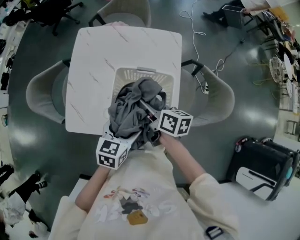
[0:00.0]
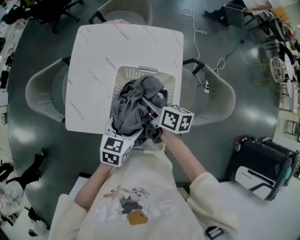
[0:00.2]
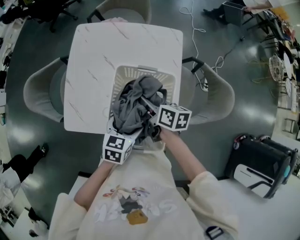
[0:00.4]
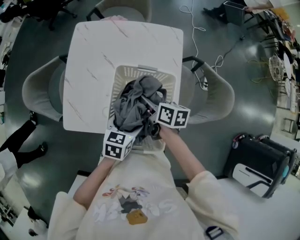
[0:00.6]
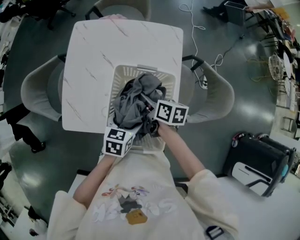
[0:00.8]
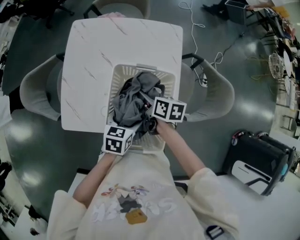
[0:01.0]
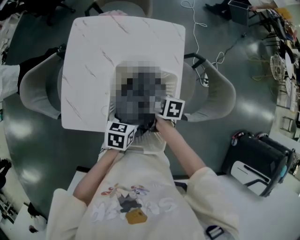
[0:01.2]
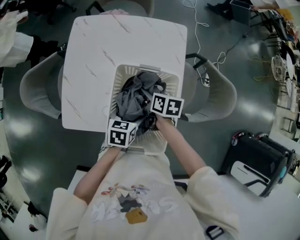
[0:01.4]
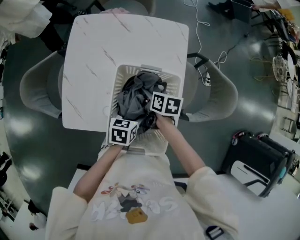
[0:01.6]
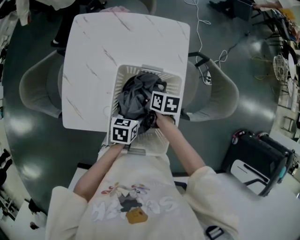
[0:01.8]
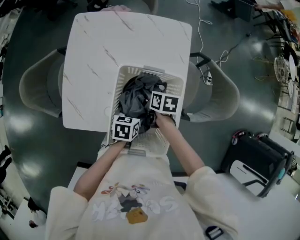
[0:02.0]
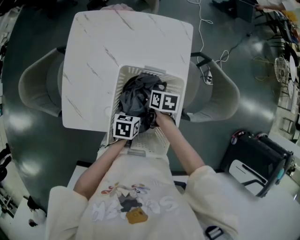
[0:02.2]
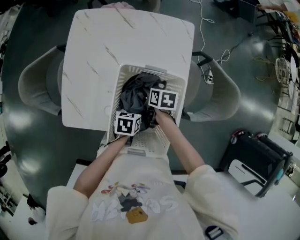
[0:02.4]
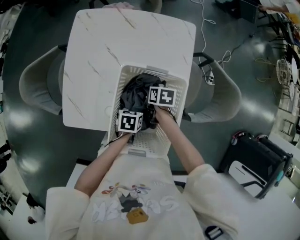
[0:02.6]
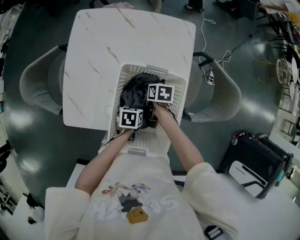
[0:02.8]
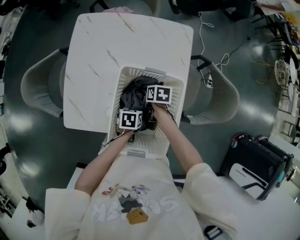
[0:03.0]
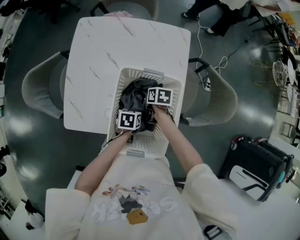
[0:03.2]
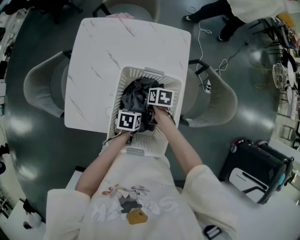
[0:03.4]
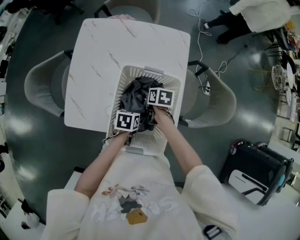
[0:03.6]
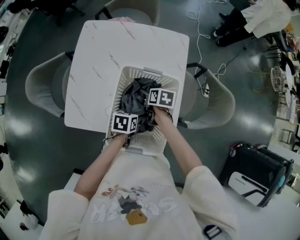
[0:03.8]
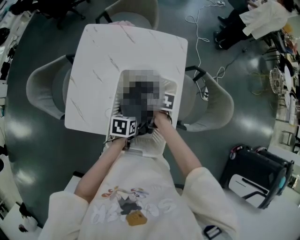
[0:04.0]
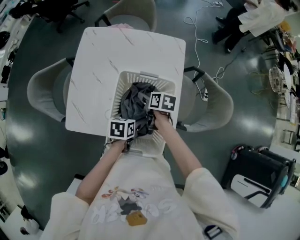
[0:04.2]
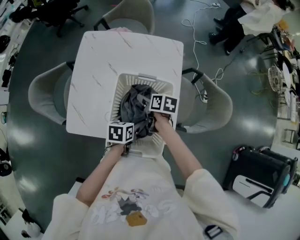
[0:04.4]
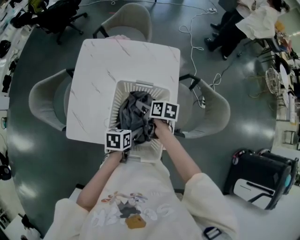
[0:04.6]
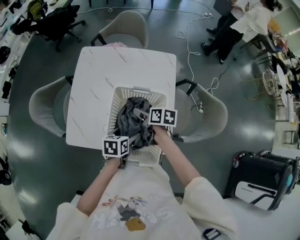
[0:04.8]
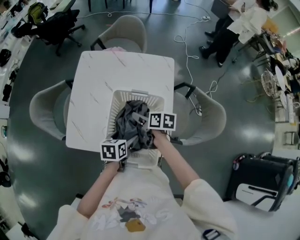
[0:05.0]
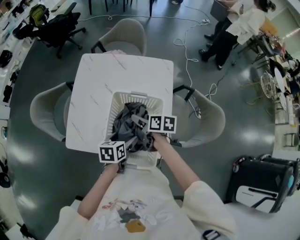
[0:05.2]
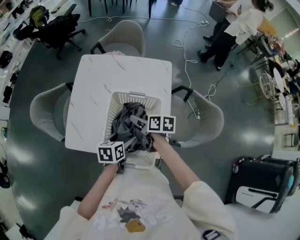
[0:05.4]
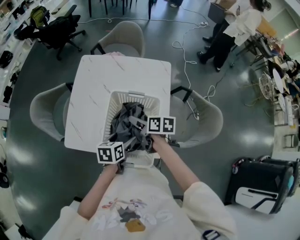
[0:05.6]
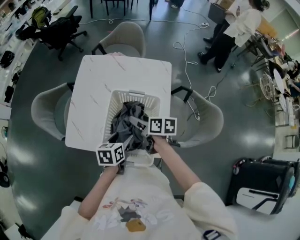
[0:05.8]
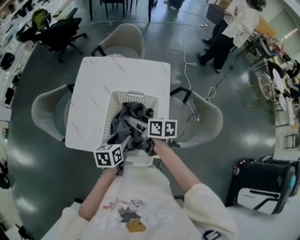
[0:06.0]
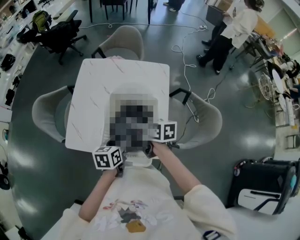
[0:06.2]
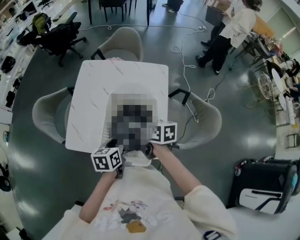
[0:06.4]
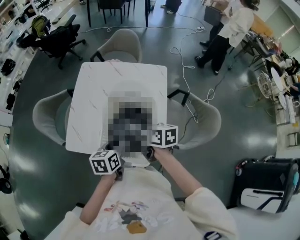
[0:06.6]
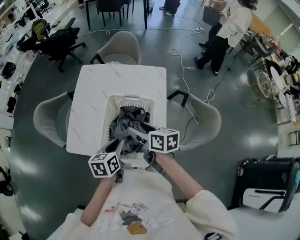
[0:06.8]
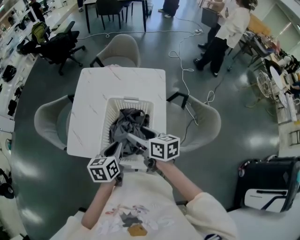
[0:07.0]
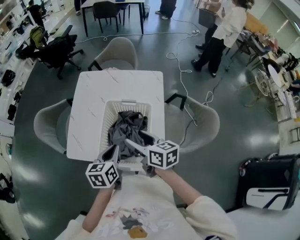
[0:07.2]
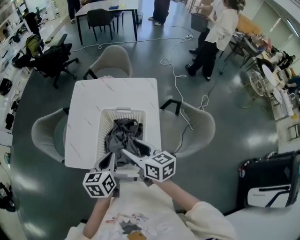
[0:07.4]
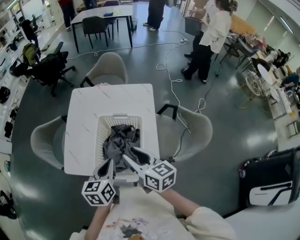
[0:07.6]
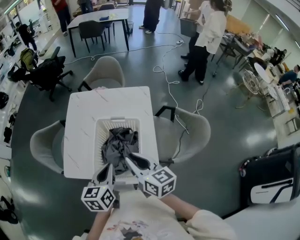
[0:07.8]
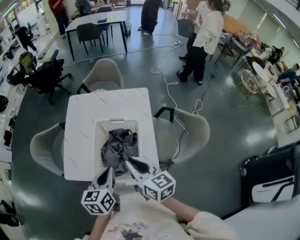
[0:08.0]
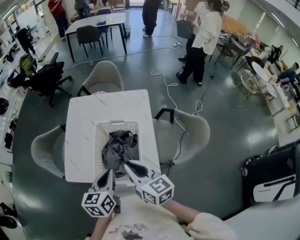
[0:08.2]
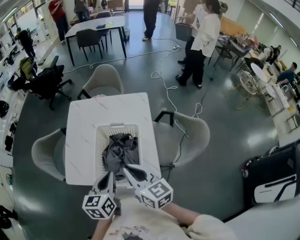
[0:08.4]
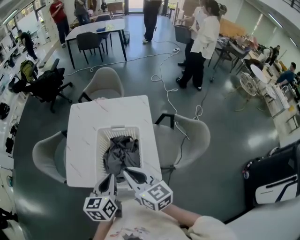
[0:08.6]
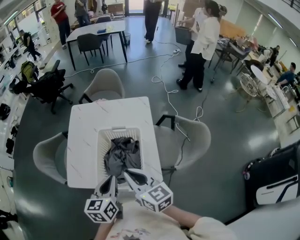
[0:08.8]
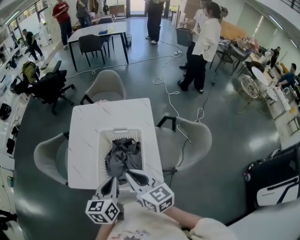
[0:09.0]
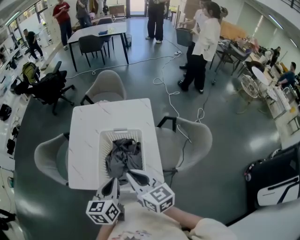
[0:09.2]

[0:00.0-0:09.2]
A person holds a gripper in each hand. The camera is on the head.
0:00.0 to 0:01.6: The left gripper heads downward, covering about 10 cm, while the right gripper goes some 15 cm downward and forward, and swivels about 20 degrees.
0:01.6 to 0:03.0: The two grippers go roughly 10 cm downward.
0:03.0 to 0:04.6: Both grippers travel together upward, about 15 cm.
0:04.6 to 0:06.2: The right gripper goes approximately 15 cm upward and backward. Meanwhile the left gripper travels upward by roughly 10 cm, and closes.
0:06.2 to 0:07.6: The right gripper heads upward and backward, covering some 15 cm, turns by roughly 20 degrees, and closes. Meanwhile the left gripper heads upward, covering roughly 10 cm, and closes.
0:07.6 to 0:09.2: The right gripper closes up.

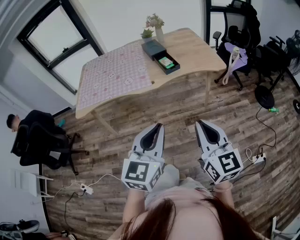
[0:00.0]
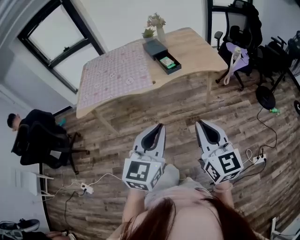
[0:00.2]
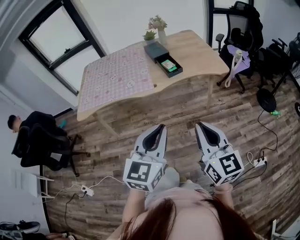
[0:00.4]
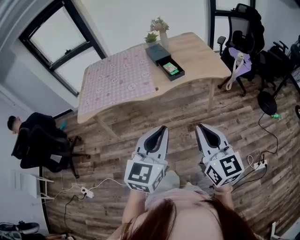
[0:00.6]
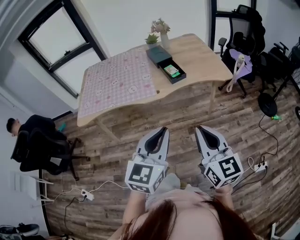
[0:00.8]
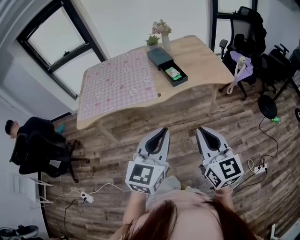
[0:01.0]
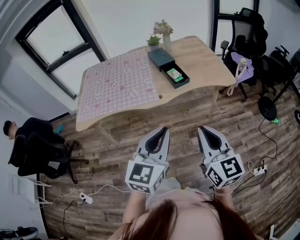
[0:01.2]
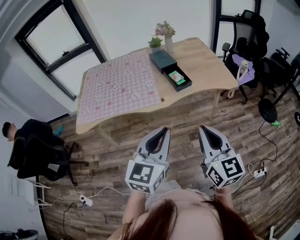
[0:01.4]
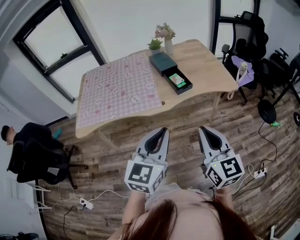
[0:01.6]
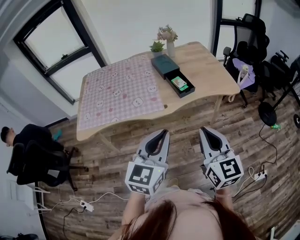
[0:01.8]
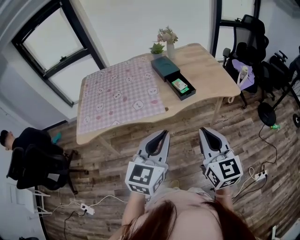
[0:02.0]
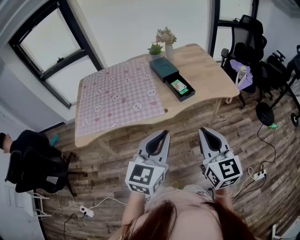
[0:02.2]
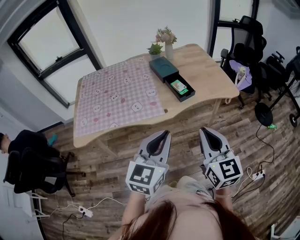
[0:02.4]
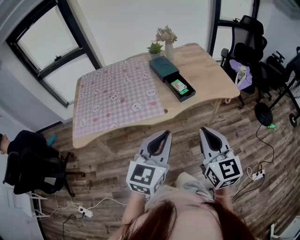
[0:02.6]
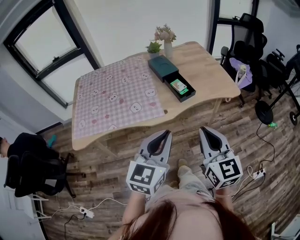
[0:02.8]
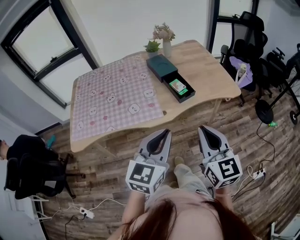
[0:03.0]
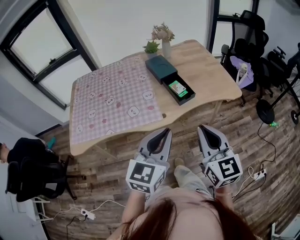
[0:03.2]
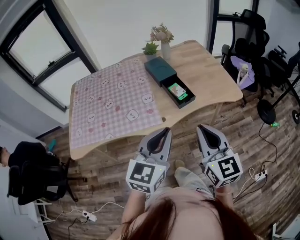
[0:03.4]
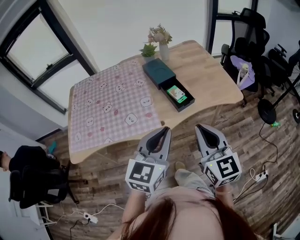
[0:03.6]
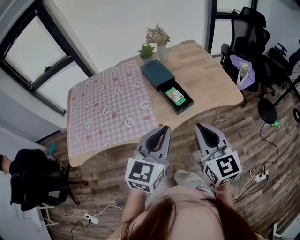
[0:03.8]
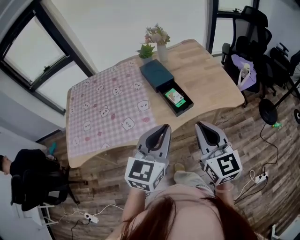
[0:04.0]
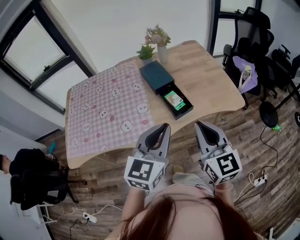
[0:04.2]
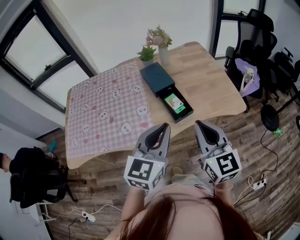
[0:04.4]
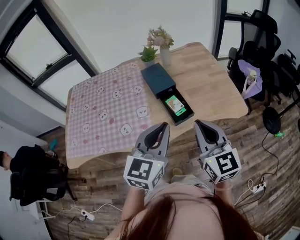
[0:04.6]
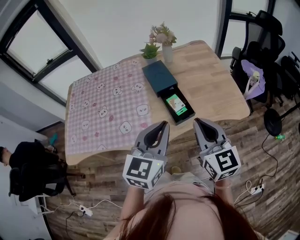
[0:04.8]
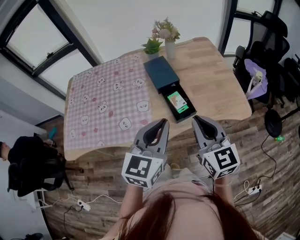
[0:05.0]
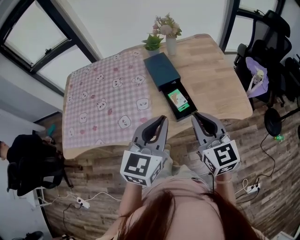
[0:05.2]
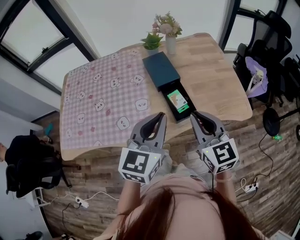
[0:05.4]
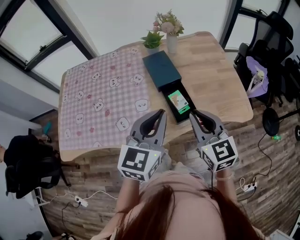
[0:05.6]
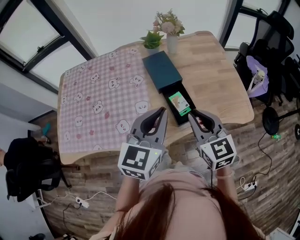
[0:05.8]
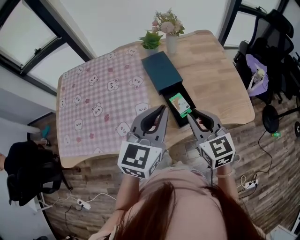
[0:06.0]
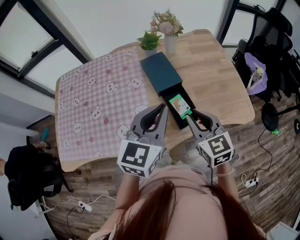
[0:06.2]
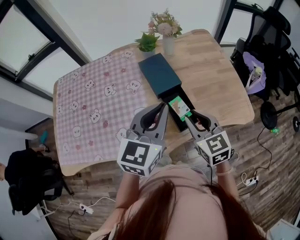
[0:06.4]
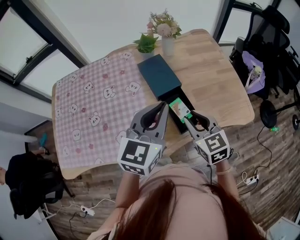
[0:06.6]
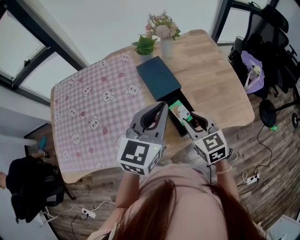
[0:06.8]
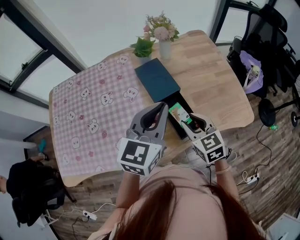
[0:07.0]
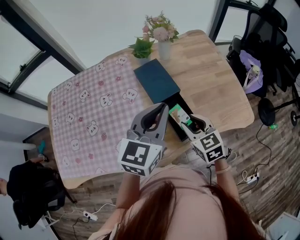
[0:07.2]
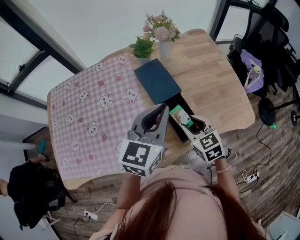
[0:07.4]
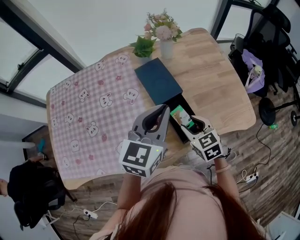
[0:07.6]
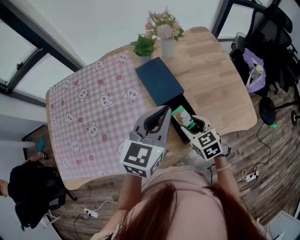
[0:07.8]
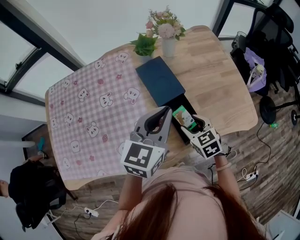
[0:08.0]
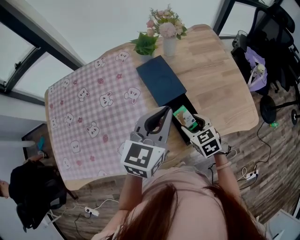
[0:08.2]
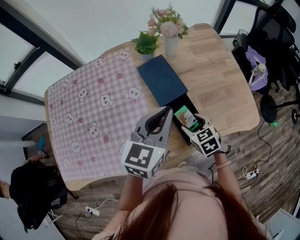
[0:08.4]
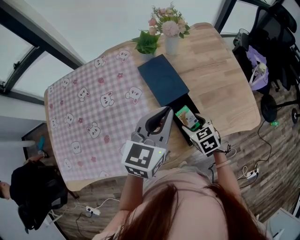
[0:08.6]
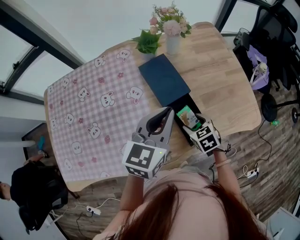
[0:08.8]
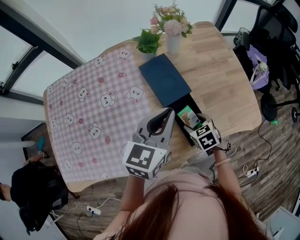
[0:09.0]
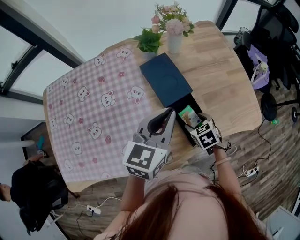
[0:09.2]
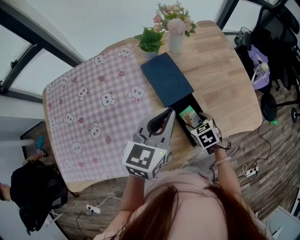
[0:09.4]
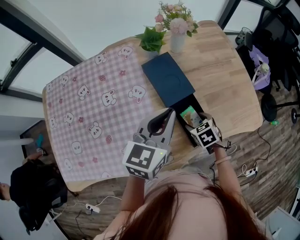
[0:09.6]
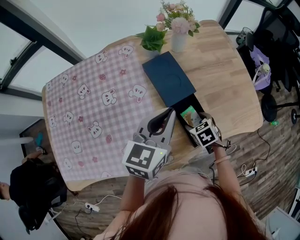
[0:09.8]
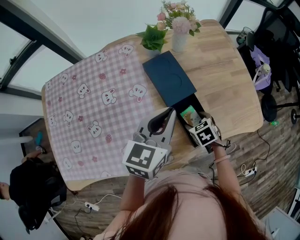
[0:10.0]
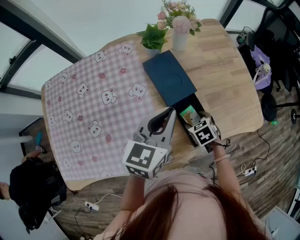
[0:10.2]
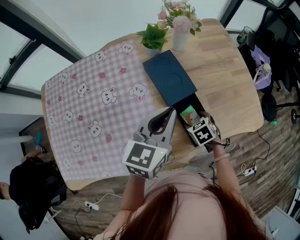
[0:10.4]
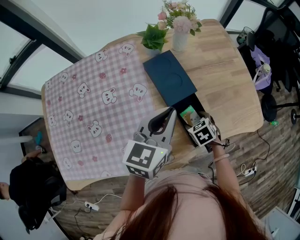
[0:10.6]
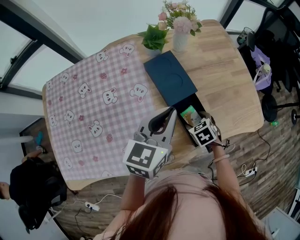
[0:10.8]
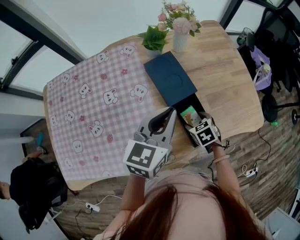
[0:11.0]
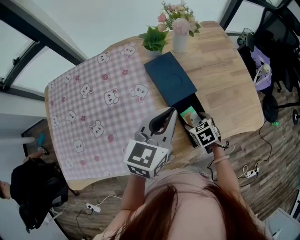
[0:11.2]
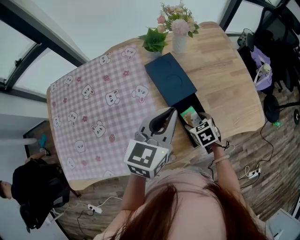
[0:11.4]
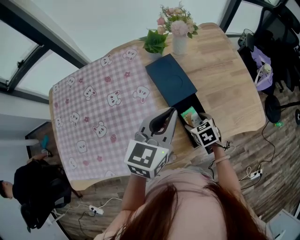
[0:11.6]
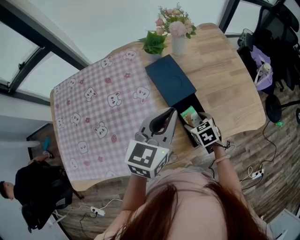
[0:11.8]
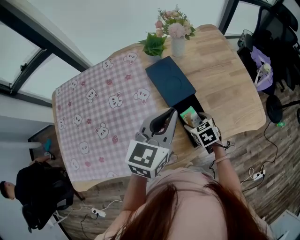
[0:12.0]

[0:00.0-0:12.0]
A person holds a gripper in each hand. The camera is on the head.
0:00.0 to 0:01.6: The grippers both shift forward and to the left by roughly 20 cm.
0:01.6 to 0:03.0: The two grippers go roughly 10 cm forward.
0:03.0 to 0:04.4: The two grippers go roughly 20 cm forward.
0:04.4 to 0:06.0: The left gripper goes approximately 15 cm forward, while the right gripper goes approximately 20 cm forward and downward.
0:06.0 to 0:07.6: The right gripper is displaced downward and forward by some 15 cm, rotates about 20 degrees, and opens its fingers, while the left gripper goes roughly 10 cm forward.
0:07.6 to 0:09.0: The left gripper shifts by about 5 cm. The right gripper goes about 10 cm downward.
0:09.0 to 0:12.0: The grippers move only a little.

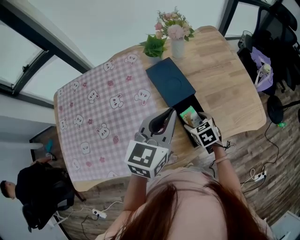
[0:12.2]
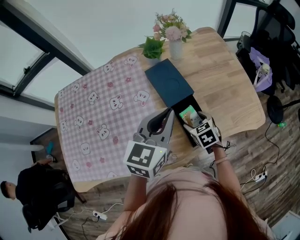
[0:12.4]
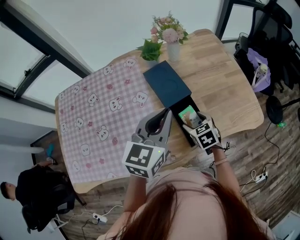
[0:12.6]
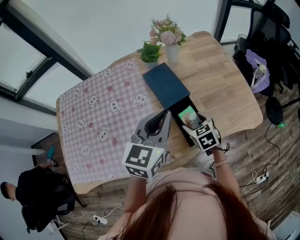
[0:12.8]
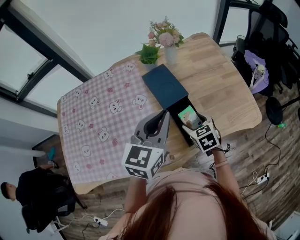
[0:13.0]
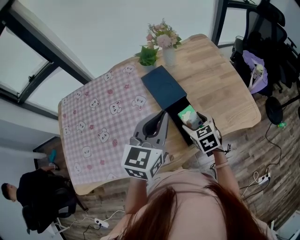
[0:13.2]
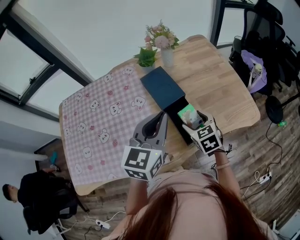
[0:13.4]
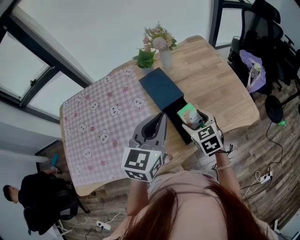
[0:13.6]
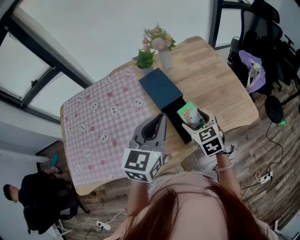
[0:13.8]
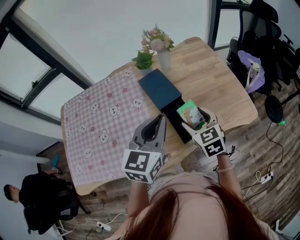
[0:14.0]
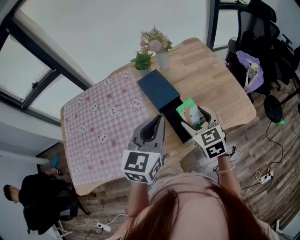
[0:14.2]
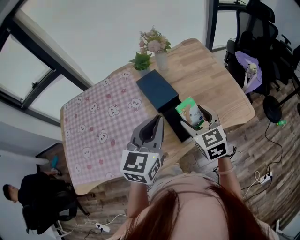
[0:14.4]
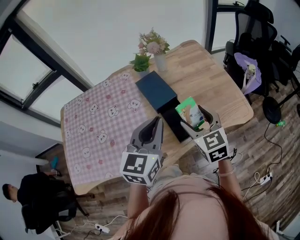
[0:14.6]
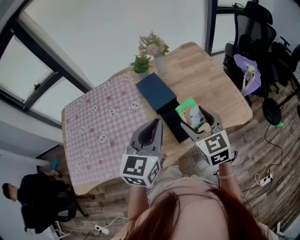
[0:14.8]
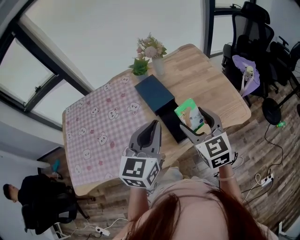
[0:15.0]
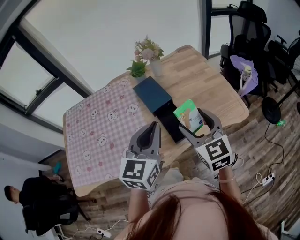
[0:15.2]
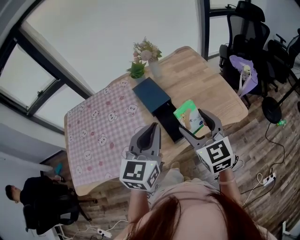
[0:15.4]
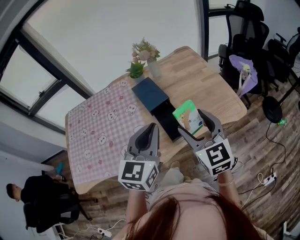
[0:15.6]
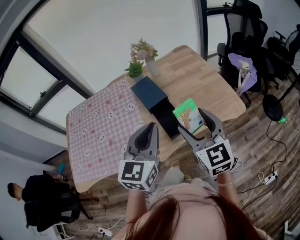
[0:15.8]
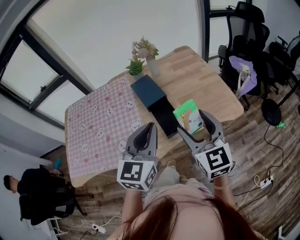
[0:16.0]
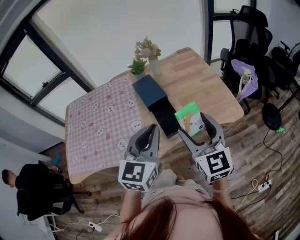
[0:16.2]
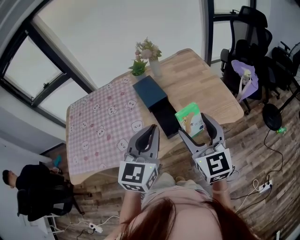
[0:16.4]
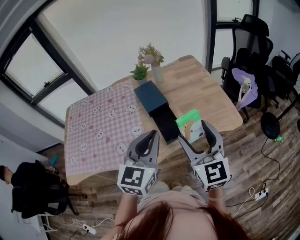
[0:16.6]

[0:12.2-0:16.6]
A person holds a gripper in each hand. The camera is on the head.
0:12.2 to 0:13.6: The left gripper travels backward by some 5 cm, while the right gripper heads upward, covering approximately 15 cm.
0:13.6 to 0:15.2: The left gripper is displaced backward by about 10 cm, while the right gripper is displaced upward and backward by approximately 20 cm, and changes its angle by some 20 degrees.
0:15.2 to 0:16.6: The grippers both shift backward by about 10 cm.
